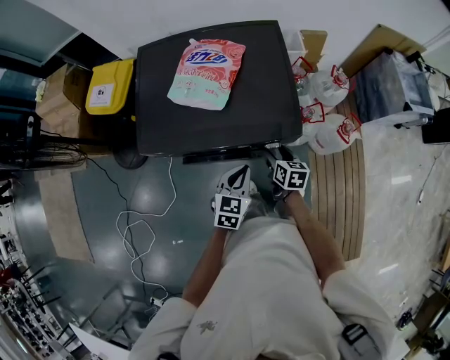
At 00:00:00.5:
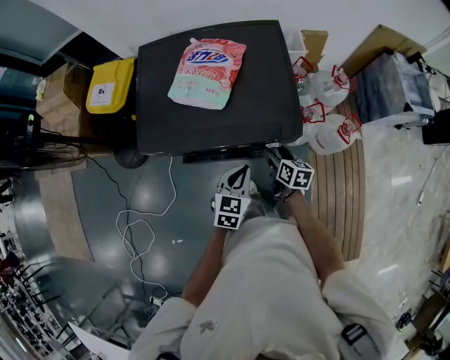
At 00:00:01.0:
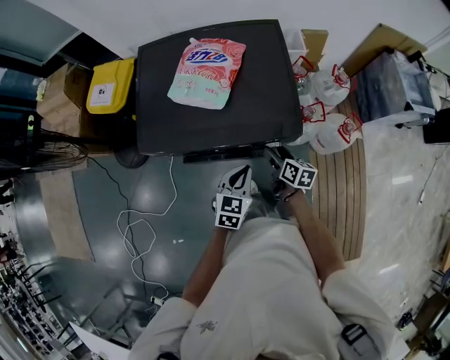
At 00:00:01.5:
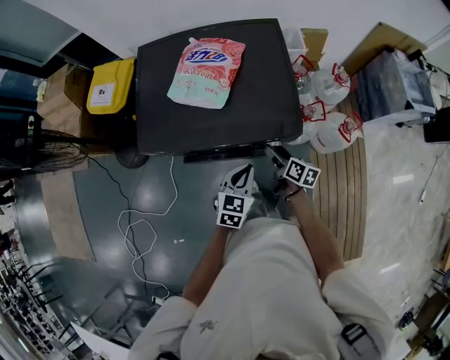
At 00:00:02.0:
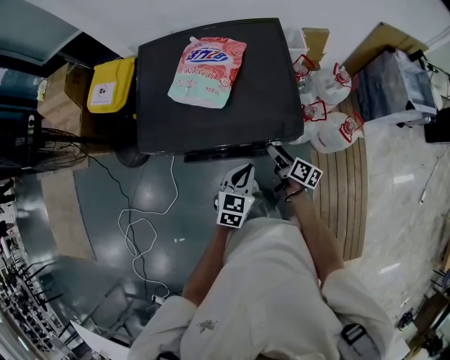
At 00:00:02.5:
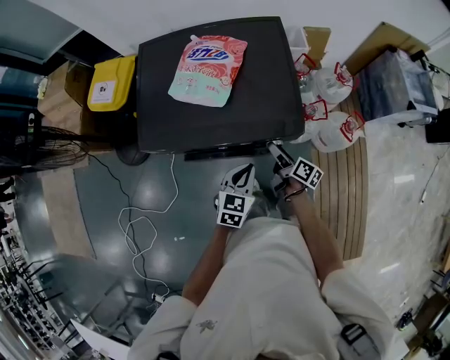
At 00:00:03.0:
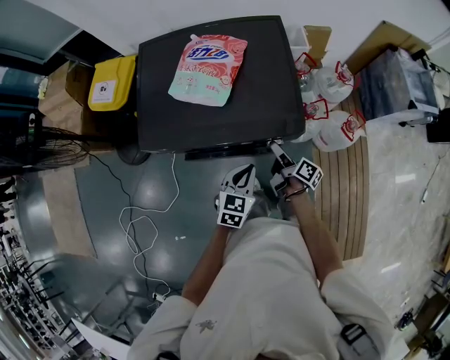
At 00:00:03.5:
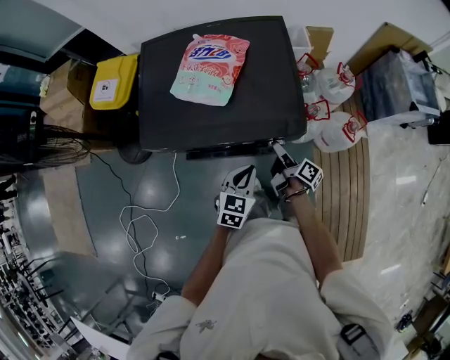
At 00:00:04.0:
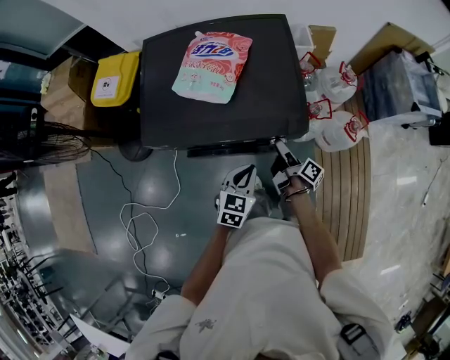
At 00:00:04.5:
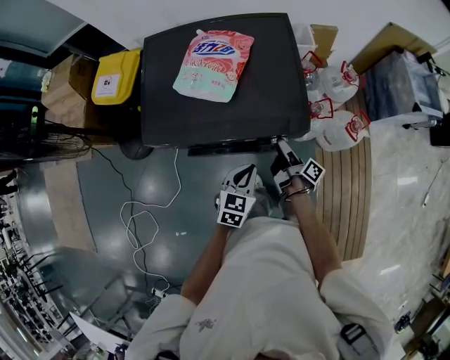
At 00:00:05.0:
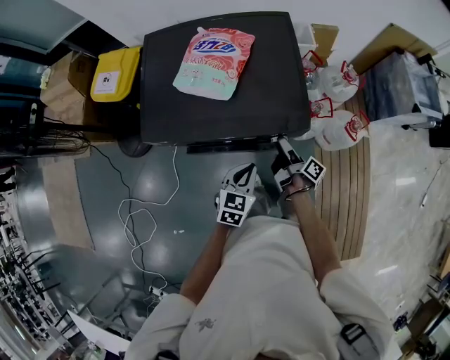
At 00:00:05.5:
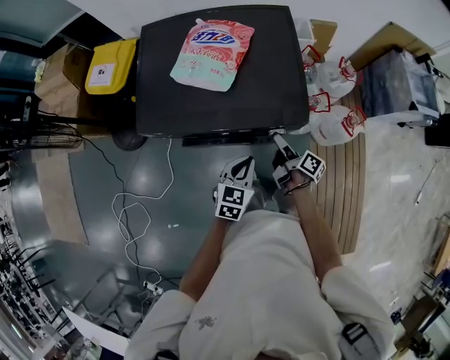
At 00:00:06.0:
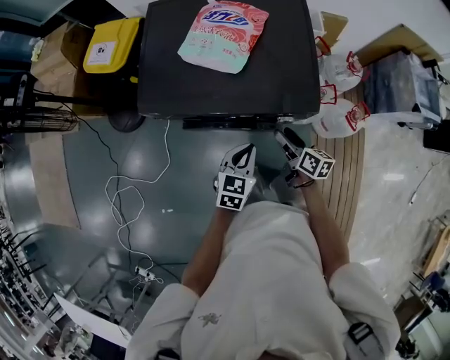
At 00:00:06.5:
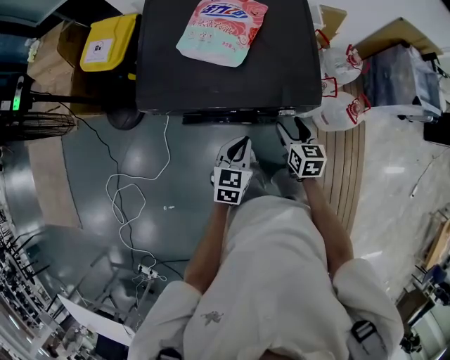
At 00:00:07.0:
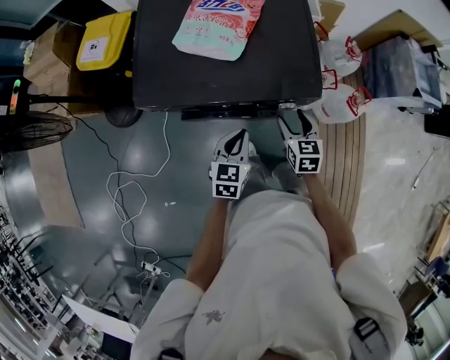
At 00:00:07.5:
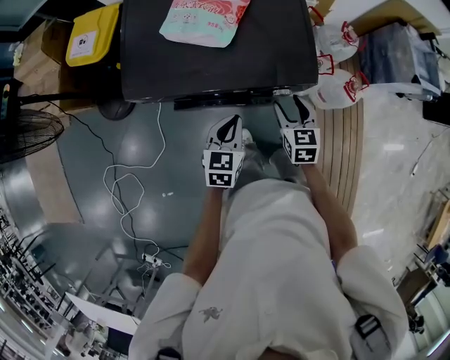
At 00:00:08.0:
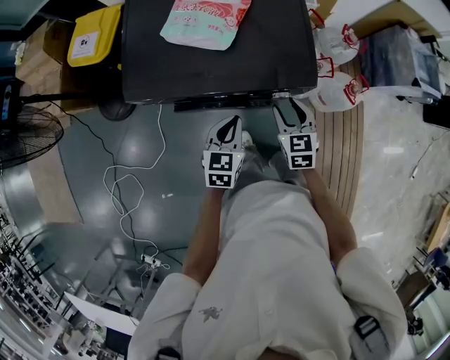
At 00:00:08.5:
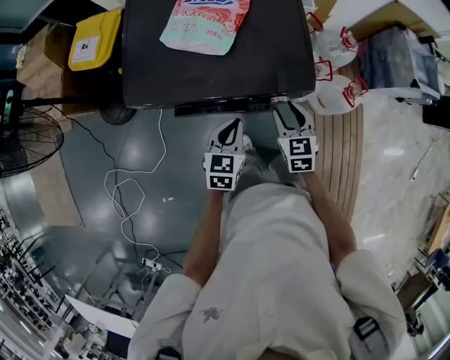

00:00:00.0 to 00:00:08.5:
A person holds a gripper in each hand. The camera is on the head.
00:00:00.0 to 00:00:02.0: The right gripper turns by roughly 40 degrees.
00:00:02.0 to 00:00:04.0: The right gripper swivels about 30 degrees.
00:00:04.0 to 00:00:06.5: The right gripper twists roughly 70 degrees counterclockwise, seen from behind.
00:00:06.5 to 00:00:08.5: There are only small adjustments of the grippers.

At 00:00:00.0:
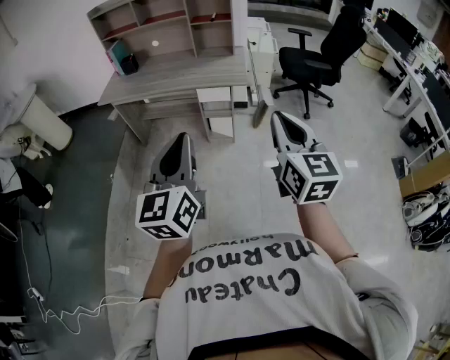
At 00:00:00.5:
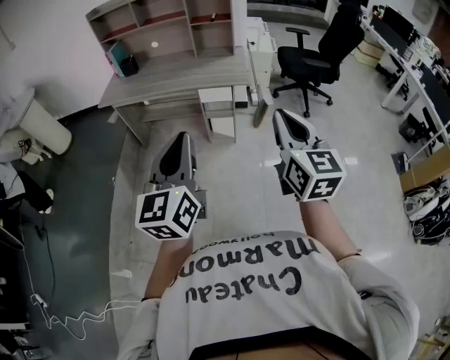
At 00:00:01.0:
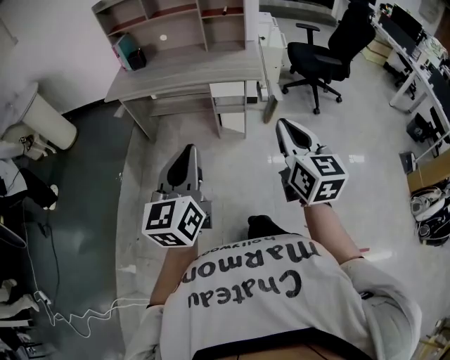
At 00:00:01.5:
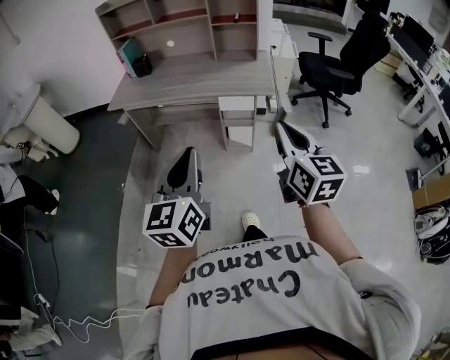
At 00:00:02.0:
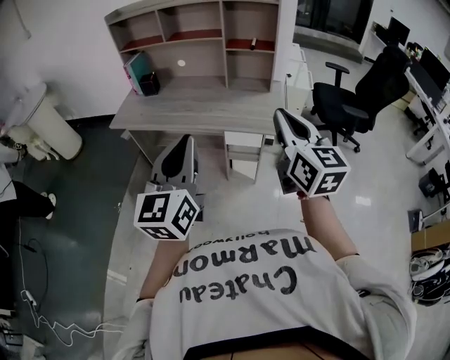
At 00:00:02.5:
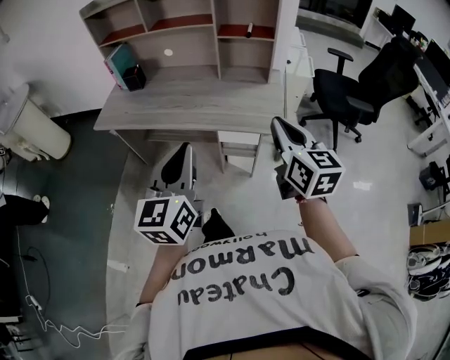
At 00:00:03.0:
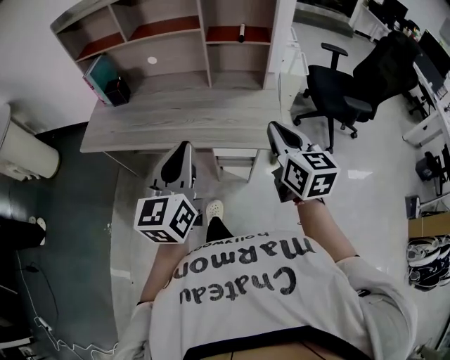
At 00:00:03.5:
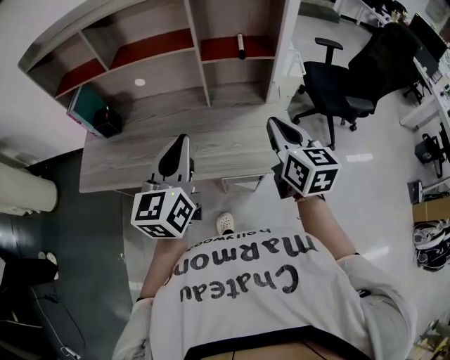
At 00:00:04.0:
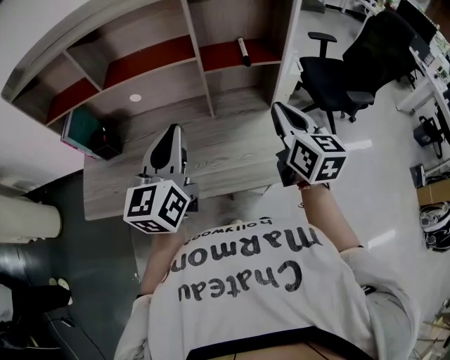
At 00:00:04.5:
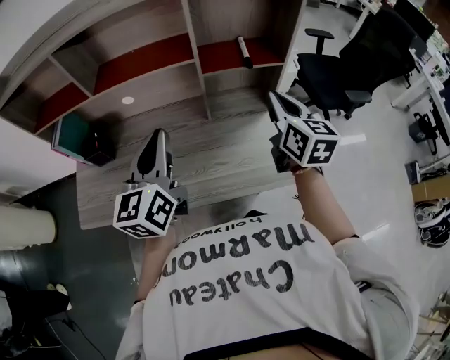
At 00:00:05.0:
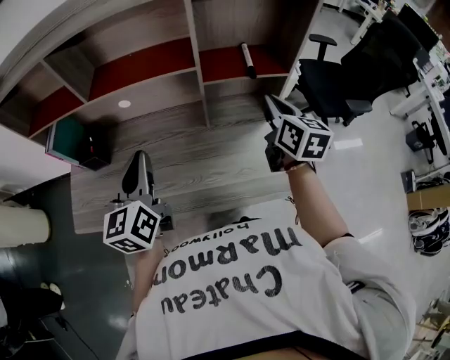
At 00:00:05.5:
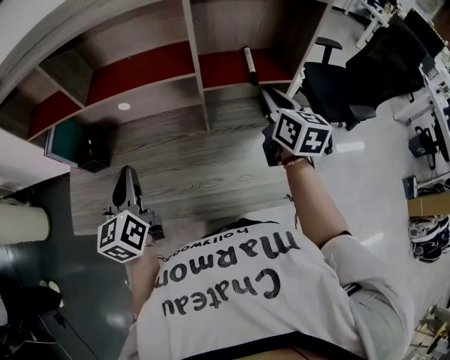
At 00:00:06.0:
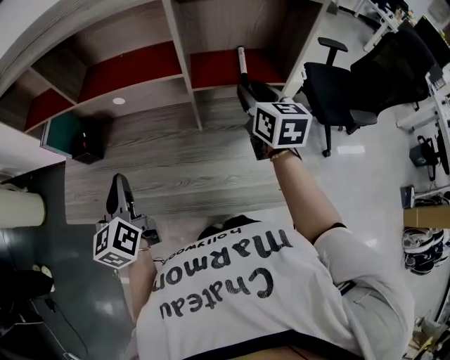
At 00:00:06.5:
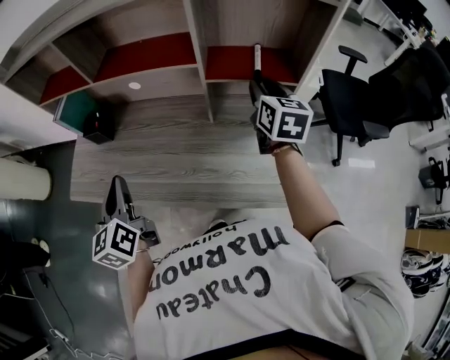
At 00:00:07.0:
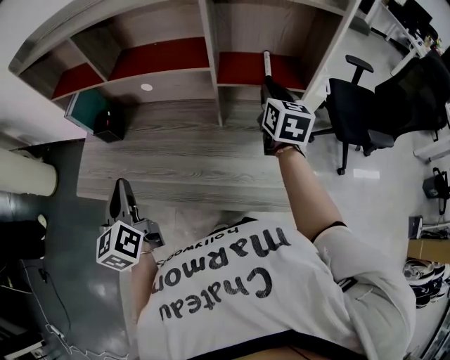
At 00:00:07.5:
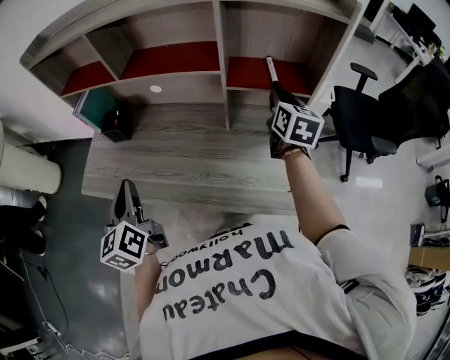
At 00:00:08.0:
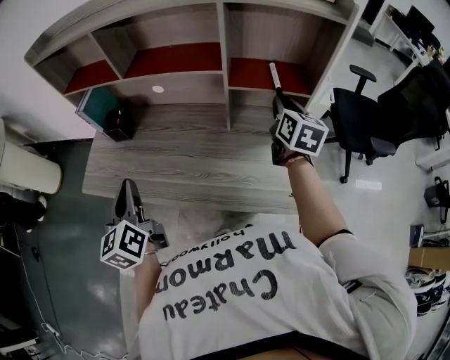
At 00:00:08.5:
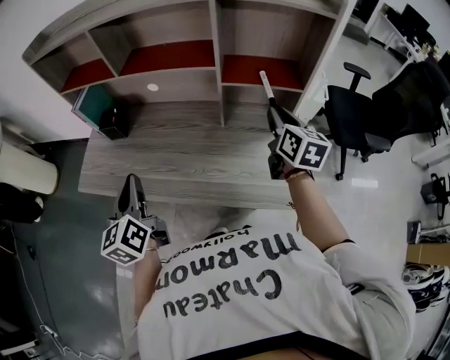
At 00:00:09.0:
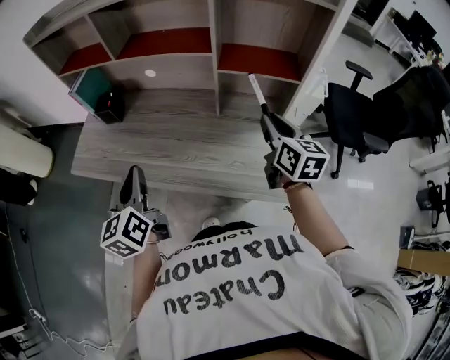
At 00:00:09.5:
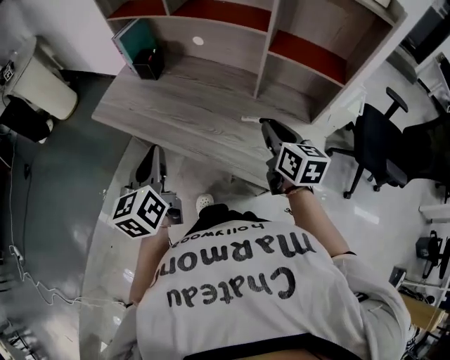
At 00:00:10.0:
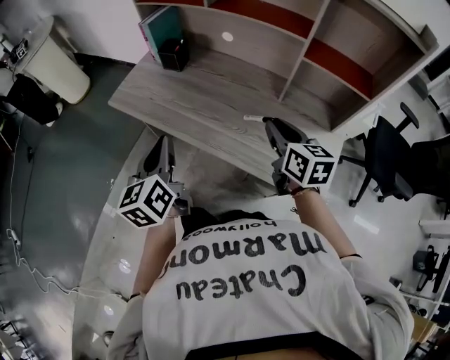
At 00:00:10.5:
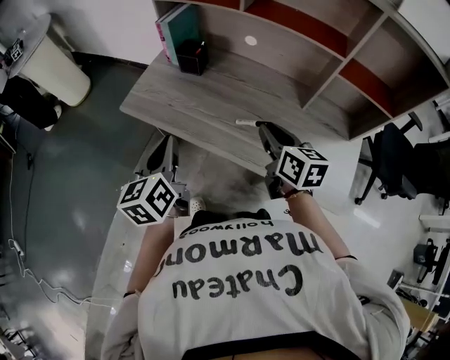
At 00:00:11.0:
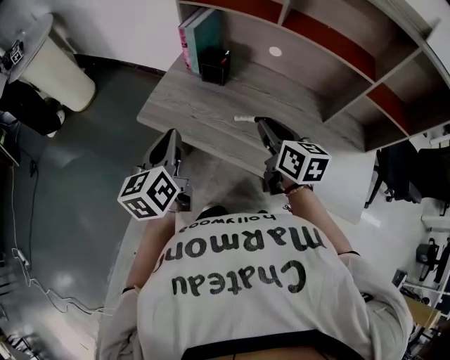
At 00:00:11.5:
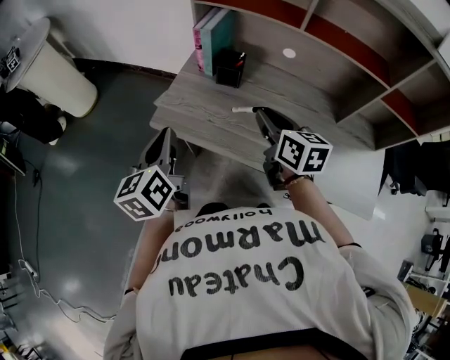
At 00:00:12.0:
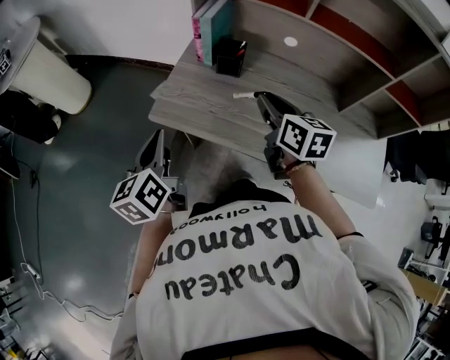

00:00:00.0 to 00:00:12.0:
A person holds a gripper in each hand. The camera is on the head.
00:00:00.0 to 00:00:02.0: The grippers both shift forward by approximately 25 cm.
00:00:02.0 to 00:00:04.0: Both grippers move forward, approximately 40 cm. The right gripper swivels roughly 20 degrees.
00:00:04.0 to 00:00:06.0: The left gripper travels to the left and downward by roughly 15 cm, and rotates about 30 degrees; the right gripper travels forward by about 20 cm, and opens.
00:00:06.0 to 00:00:08.0: The left gripper moves backward and to the left, some 10 cm.
00:00:08.0 to 00:00:10.0: The left gripper goes some 10 cm backward, while the right gripper goes approximately 25 cm to the left and backward, and turns by some 40 degrees.
00:00:10.0 to 00:00:12.0: The grippers both shift to the left and forward by roughly 30 cm.

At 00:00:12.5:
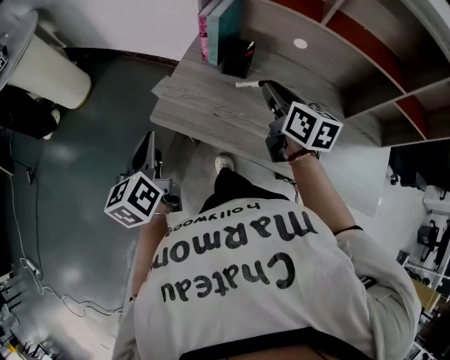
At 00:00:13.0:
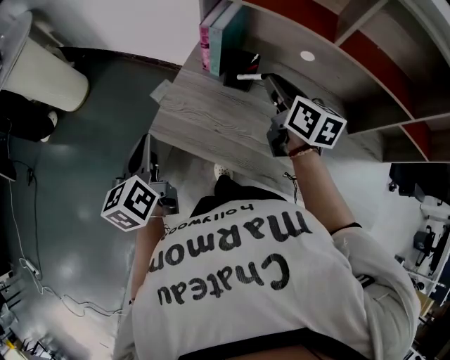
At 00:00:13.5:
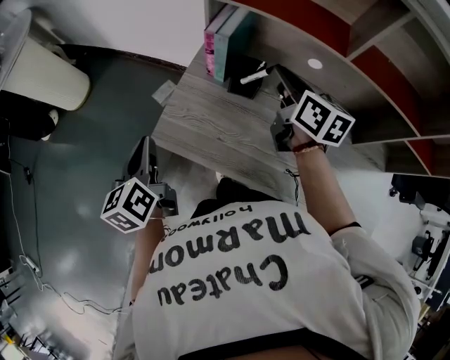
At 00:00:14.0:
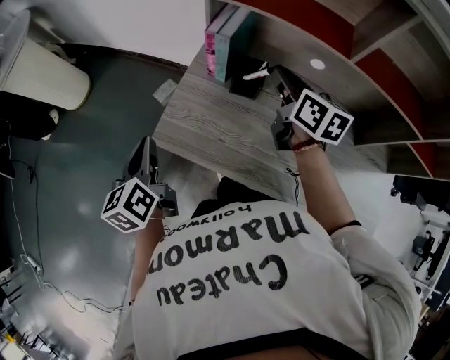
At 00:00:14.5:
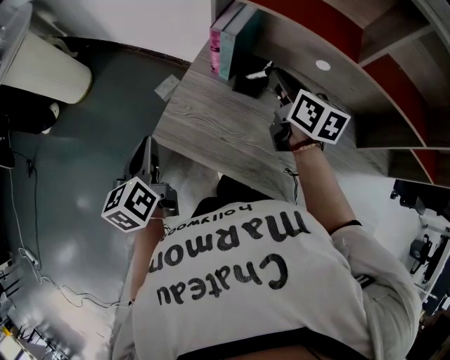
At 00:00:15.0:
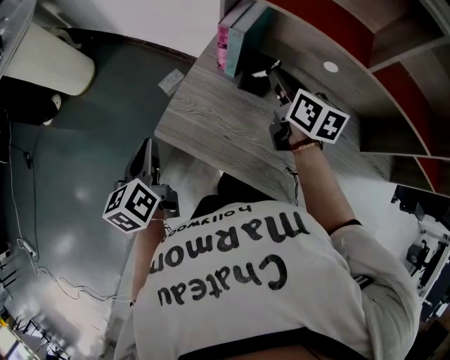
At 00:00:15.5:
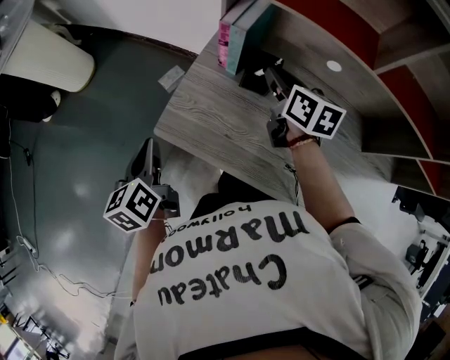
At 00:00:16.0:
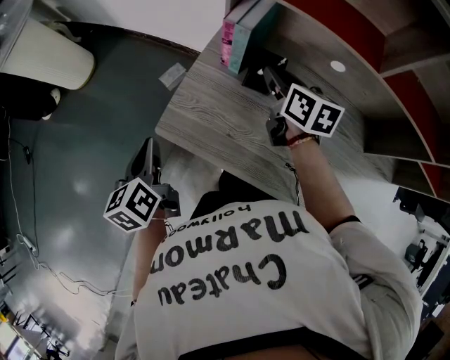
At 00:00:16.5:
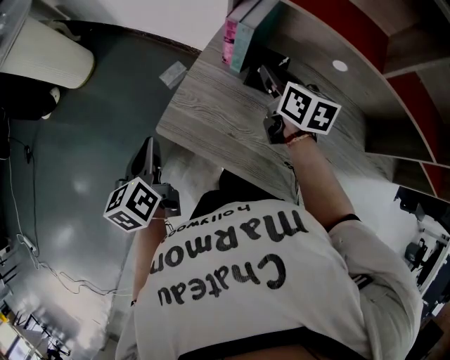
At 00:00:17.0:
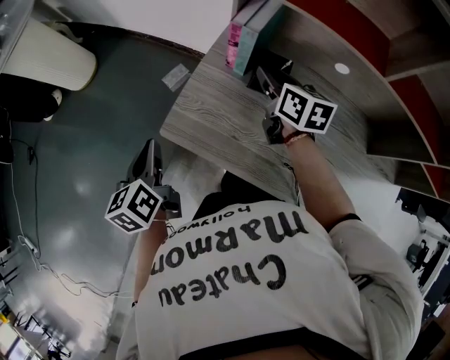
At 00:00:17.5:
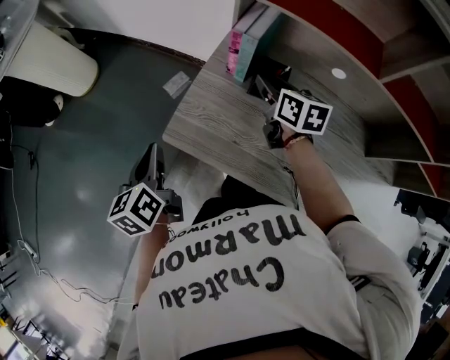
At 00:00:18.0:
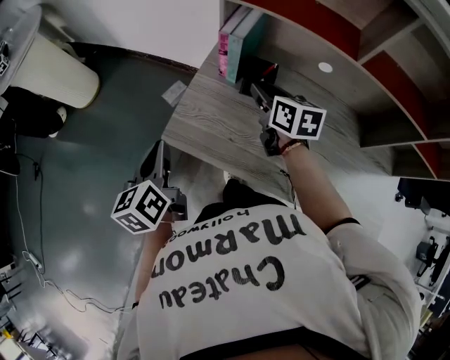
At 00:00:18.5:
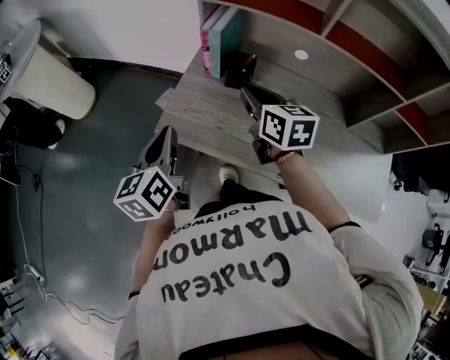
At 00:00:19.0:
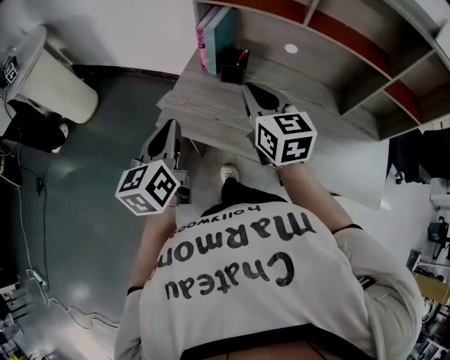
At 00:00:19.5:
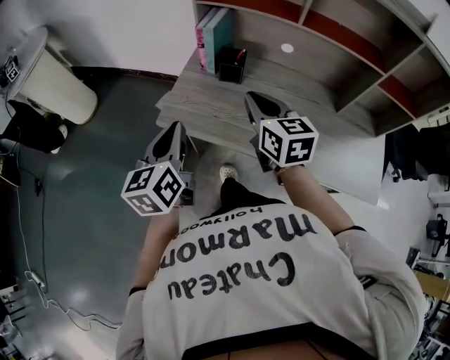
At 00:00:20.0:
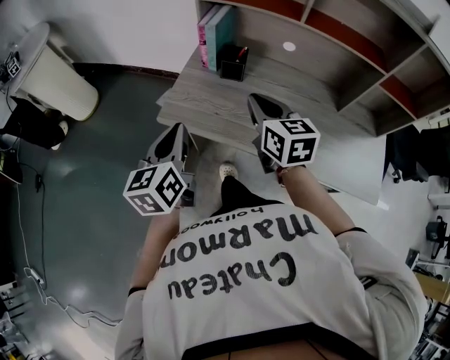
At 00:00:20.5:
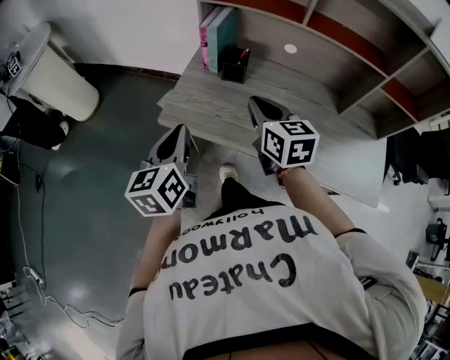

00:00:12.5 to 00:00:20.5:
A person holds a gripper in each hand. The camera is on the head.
00:00:12.5 to 00:00:14.5: The right gripper is displaced forward by some 15 cm; the left gripper travels forward by some 10 cm.
00:00:14.5 to 00:00:16.5: The right gripper changes place by approximately 5 cm.
00:00:16.5 to 00:00:18.5: The left gripper is displaced upward and to the right by some 10 cm. The right gripper shifts about 15 cm backward and upward.
00:00:18.5 to 00:00:20.5: The grippers both shift backward by roughly 10 cm.
